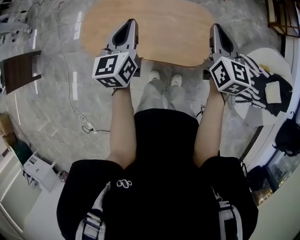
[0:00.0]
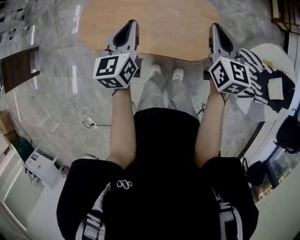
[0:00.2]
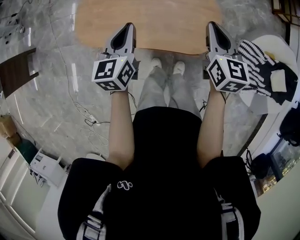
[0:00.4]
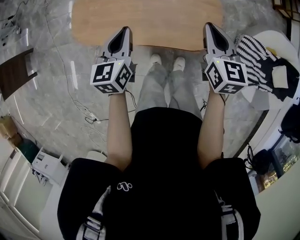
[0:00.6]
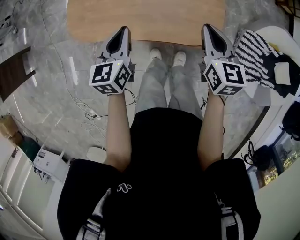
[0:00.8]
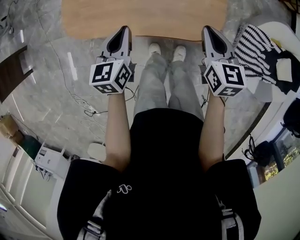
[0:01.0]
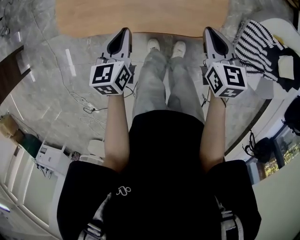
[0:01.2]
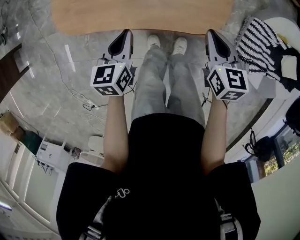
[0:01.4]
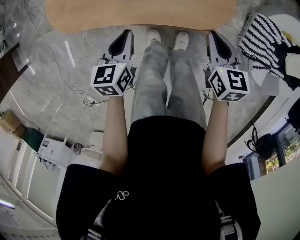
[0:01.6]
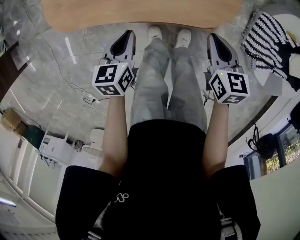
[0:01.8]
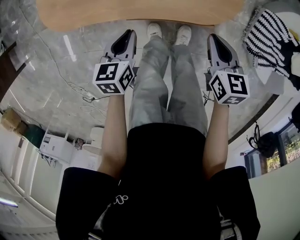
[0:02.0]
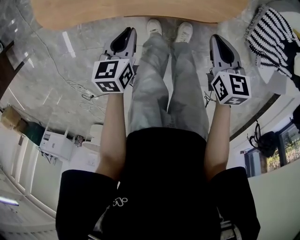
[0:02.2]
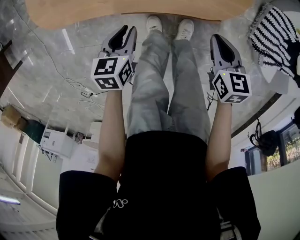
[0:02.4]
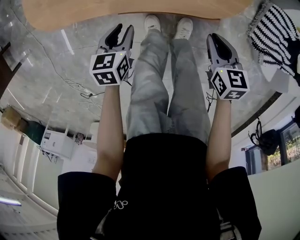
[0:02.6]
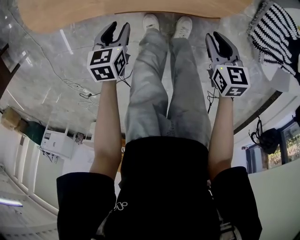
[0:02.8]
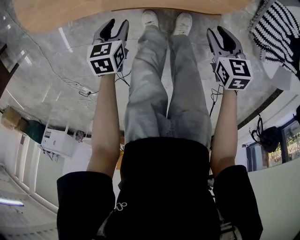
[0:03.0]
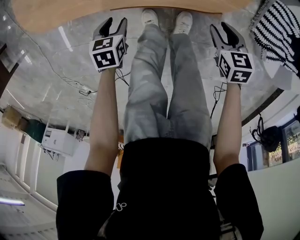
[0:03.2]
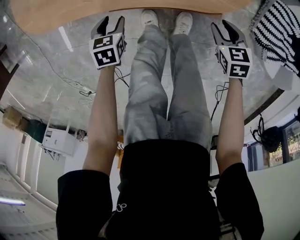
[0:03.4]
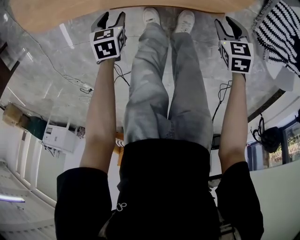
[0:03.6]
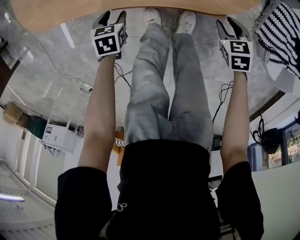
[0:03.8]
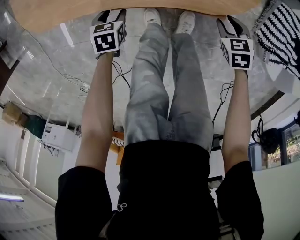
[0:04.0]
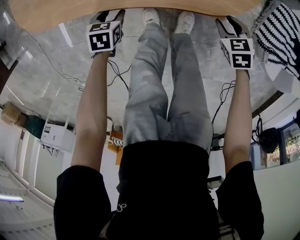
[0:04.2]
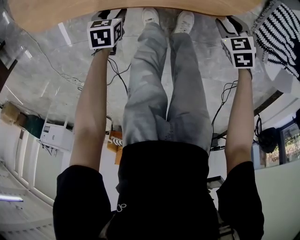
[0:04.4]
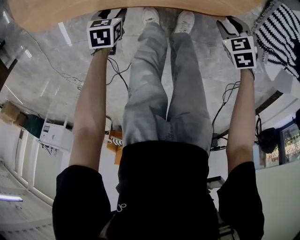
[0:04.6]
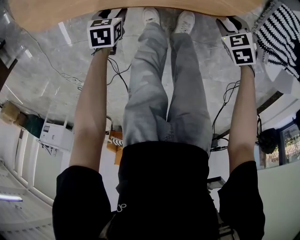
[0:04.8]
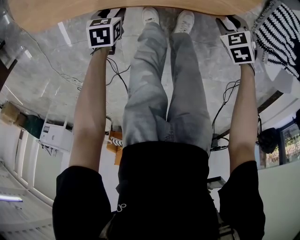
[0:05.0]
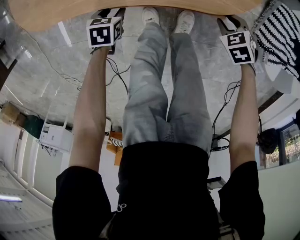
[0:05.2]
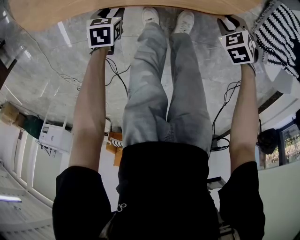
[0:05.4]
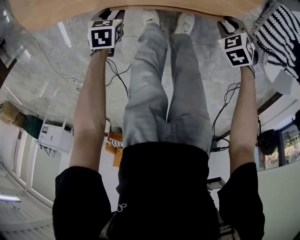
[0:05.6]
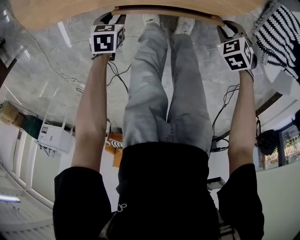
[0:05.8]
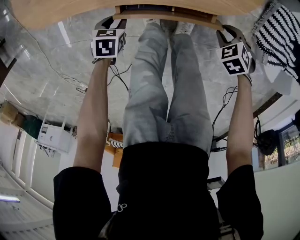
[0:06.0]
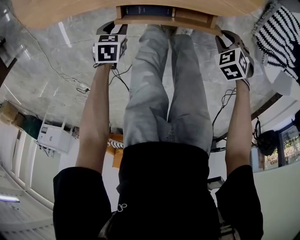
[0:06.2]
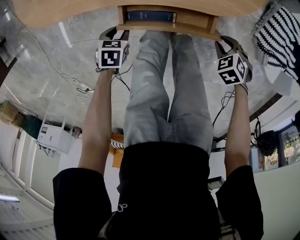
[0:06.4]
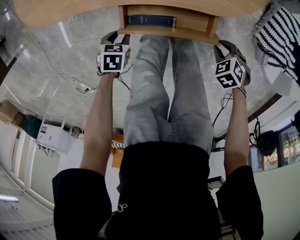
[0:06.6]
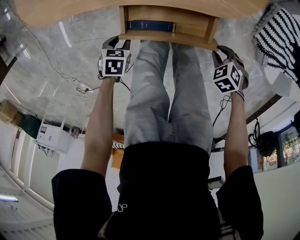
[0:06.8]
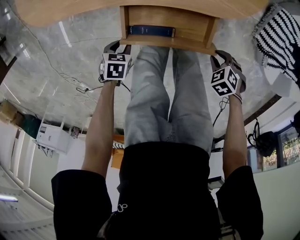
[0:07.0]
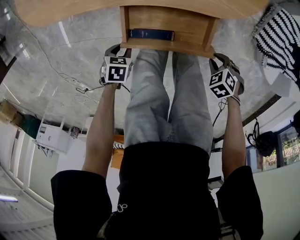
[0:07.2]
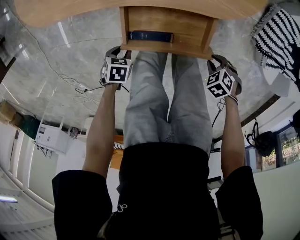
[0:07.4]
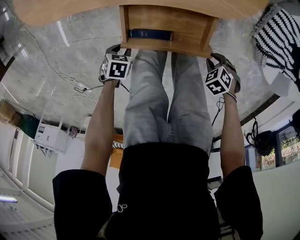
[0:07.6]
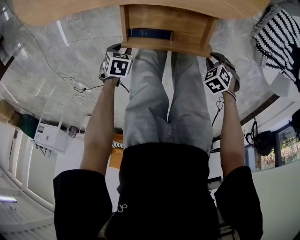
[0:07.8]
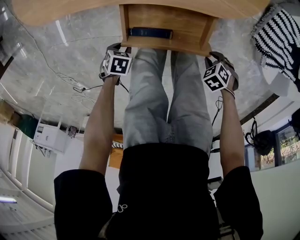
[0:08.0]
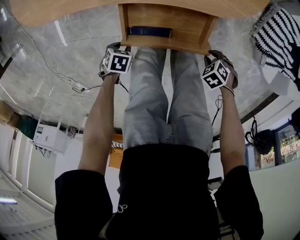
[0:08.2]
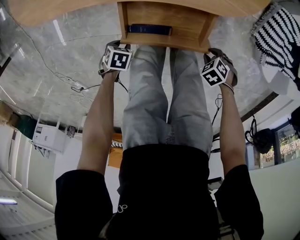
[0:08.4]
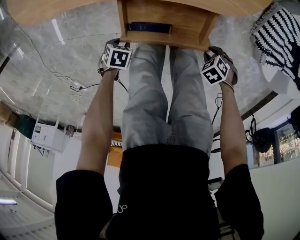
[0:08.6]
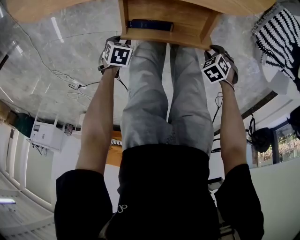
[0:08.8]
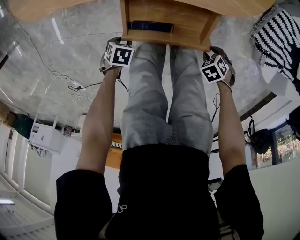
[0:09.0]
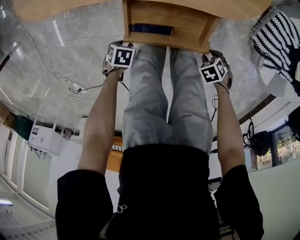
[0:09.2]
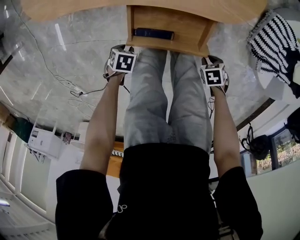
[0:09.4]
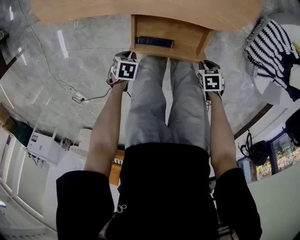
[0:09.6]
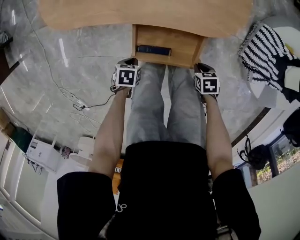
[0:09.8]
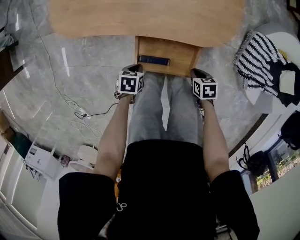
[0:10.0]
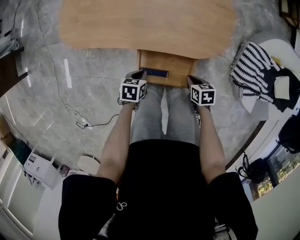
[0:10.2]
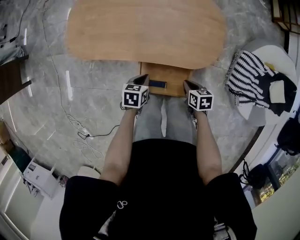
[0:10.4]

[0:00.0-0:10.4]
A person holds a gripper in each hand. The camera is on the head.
0:00.0 to 0:01.4: The right gripper moves downward and backward, about 25 cm, and changes its angle by about 20 degrees, while the left gripper is displaced downward by about 25 cm, and rotates about 30 degrees.
0:01.4 to 0:03.0: The left gripper is displaced downward by about 25 cm, changes its angle by about 20 degrees, and opens, while the right gripper heads downward and backward, covering roughly 25 cm, and opens up.
0:03.0 to 0:04.4: Both grippers travel together downward, roughly 10 cm. The right gripper turns by about 30 degrees.
0:04.4 to 0:06.0: The right gripper changes place by about 5 cm, while the left gripper shifts by some 5 cm.
0:06.0 to 0:07.4: The right gripper changes place by about 15 cm, while the left gripper shifts by approximately 15 cm.
0:07.4 to 0:09.0: Both grippers travel together downward, some 5 cm.
0:09.0 to 0:10.4: Both grippers travel together upward, some 25 cm. The left gripper changes its angle by about 40 degrees, and closes its fingers, while the right gripper turns by approximately 50 degrees, and closes its fingers.

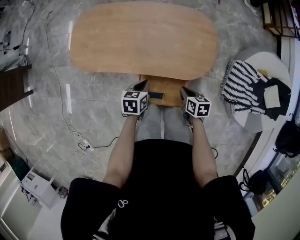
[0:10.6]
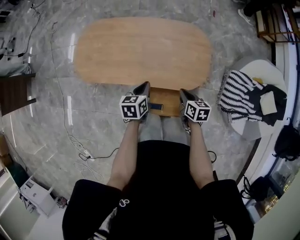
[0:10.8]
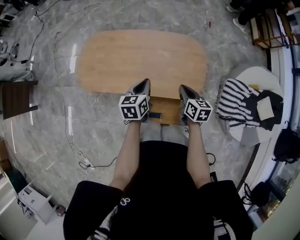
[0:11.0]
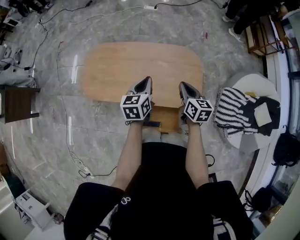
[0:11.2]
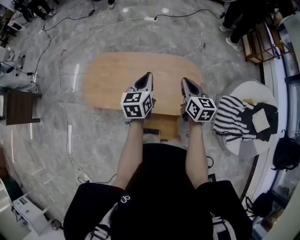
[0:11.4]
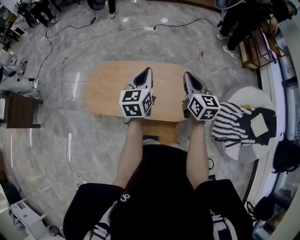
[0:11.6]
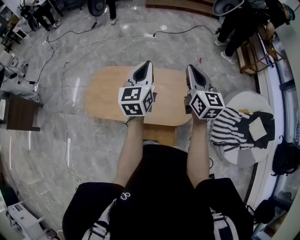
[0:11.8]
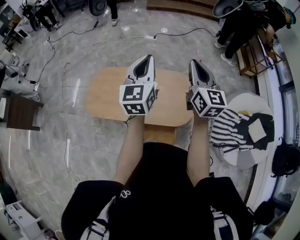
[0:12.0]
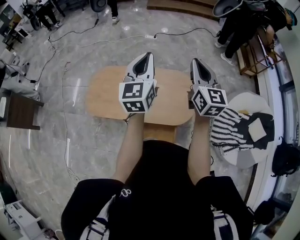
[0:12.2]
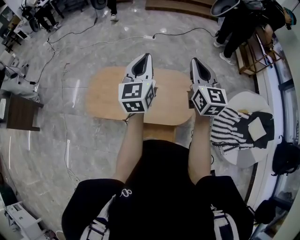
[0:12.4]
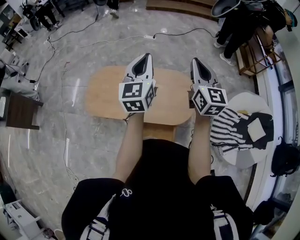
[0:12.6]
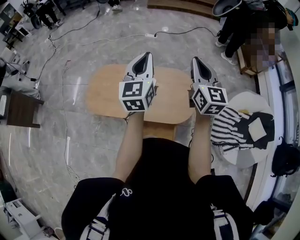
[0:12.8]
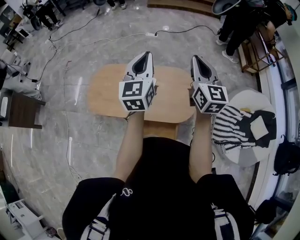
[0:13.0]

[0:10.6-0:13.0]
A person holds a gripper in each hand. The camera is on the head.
0:10.6 to 0:11.8: Both grippers travel together upward, roughly 50 cm. The right gripper angles its fingers upward, by some 50 degrees. The left gripper tilts its fingers roughly 50 degrees upward.
0:11.8 to 0:13.0: The grippers move only a little.

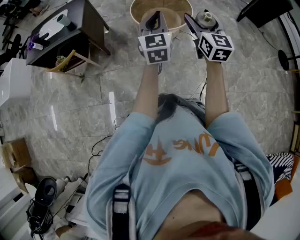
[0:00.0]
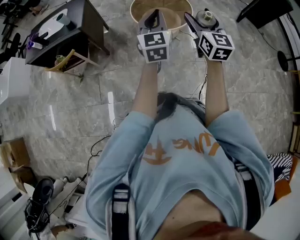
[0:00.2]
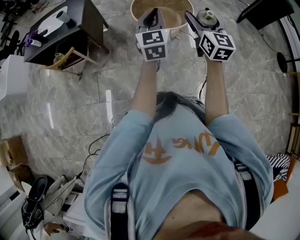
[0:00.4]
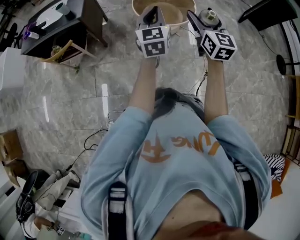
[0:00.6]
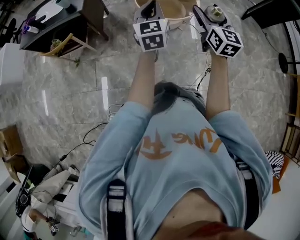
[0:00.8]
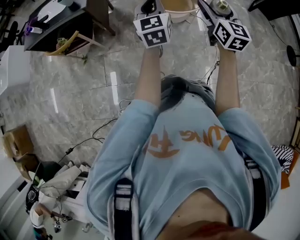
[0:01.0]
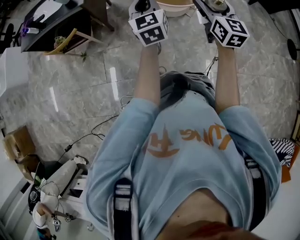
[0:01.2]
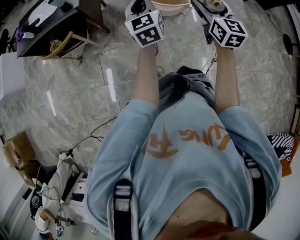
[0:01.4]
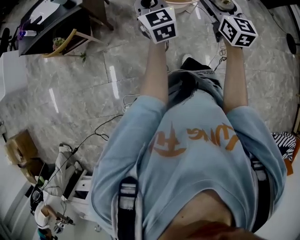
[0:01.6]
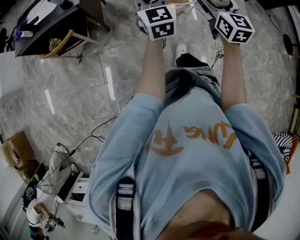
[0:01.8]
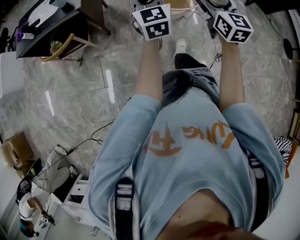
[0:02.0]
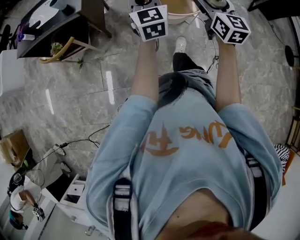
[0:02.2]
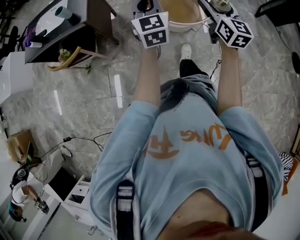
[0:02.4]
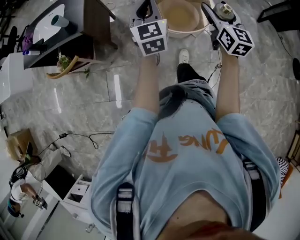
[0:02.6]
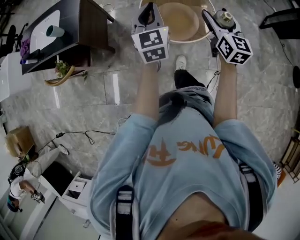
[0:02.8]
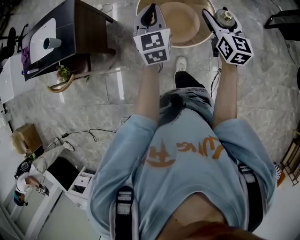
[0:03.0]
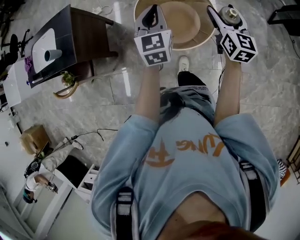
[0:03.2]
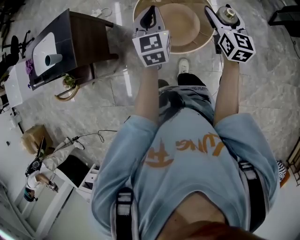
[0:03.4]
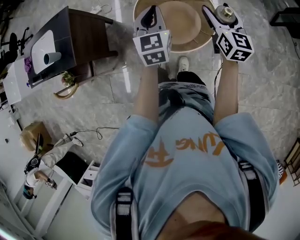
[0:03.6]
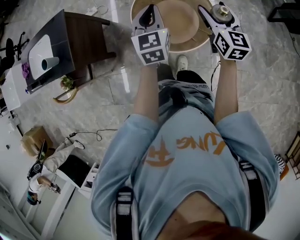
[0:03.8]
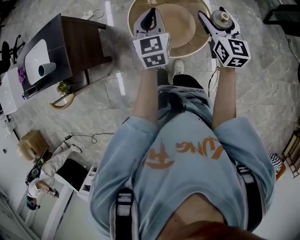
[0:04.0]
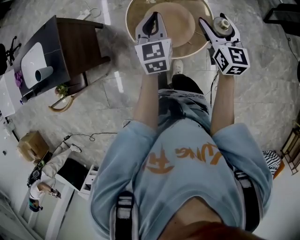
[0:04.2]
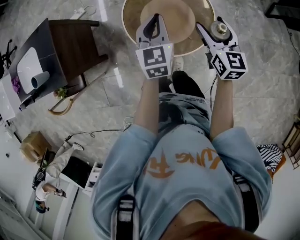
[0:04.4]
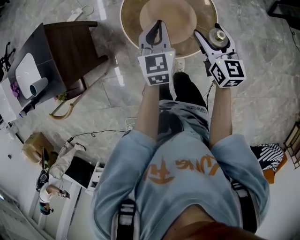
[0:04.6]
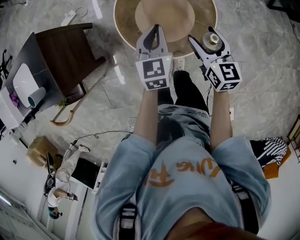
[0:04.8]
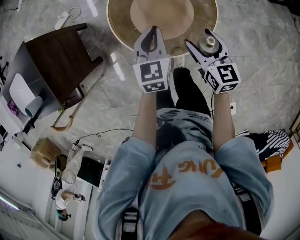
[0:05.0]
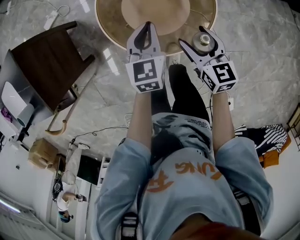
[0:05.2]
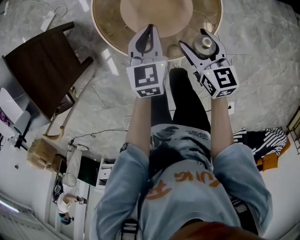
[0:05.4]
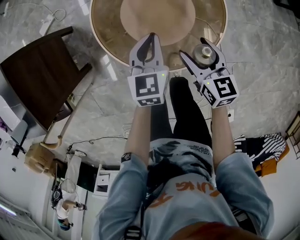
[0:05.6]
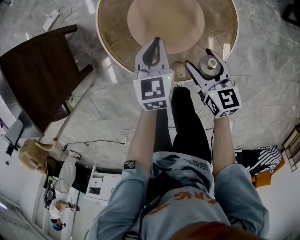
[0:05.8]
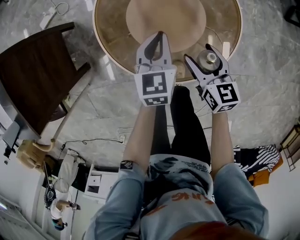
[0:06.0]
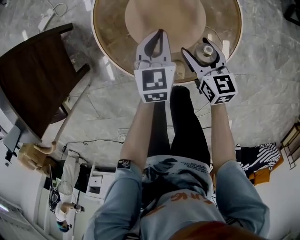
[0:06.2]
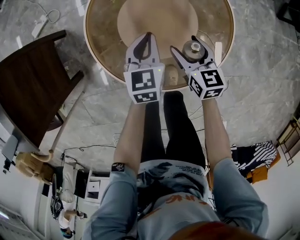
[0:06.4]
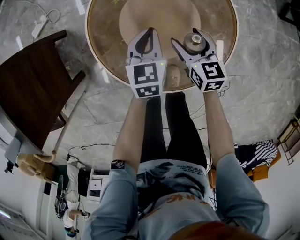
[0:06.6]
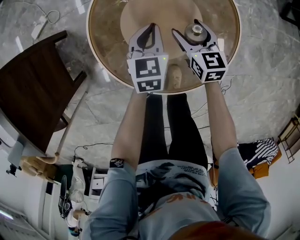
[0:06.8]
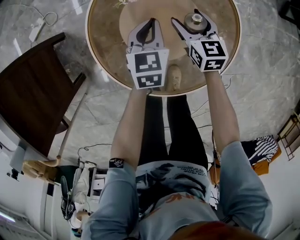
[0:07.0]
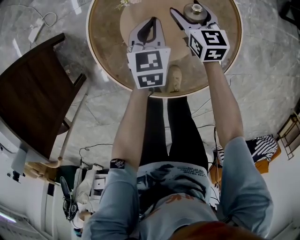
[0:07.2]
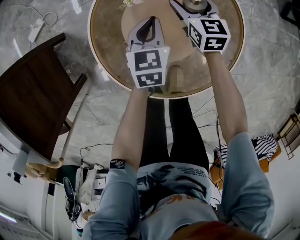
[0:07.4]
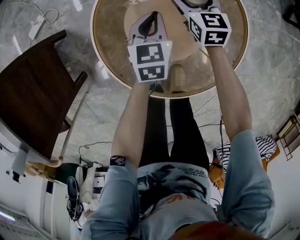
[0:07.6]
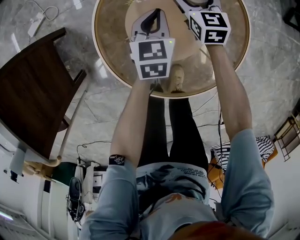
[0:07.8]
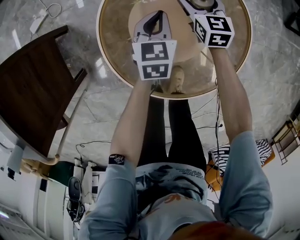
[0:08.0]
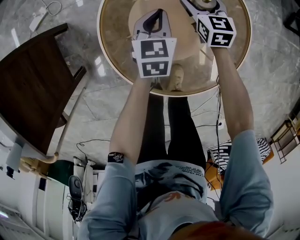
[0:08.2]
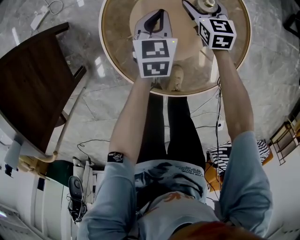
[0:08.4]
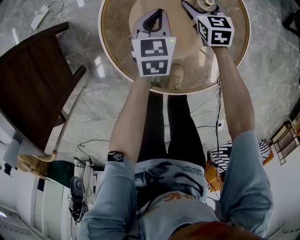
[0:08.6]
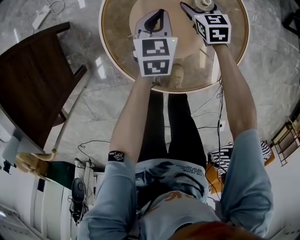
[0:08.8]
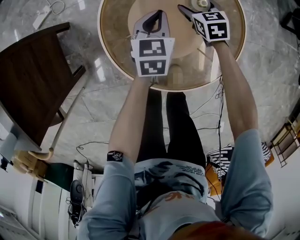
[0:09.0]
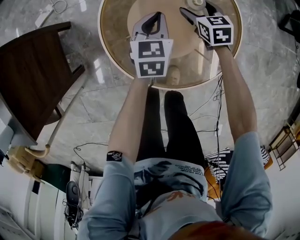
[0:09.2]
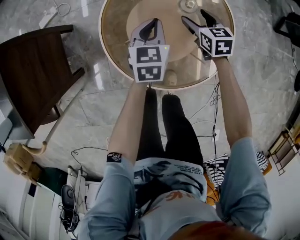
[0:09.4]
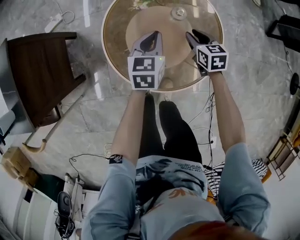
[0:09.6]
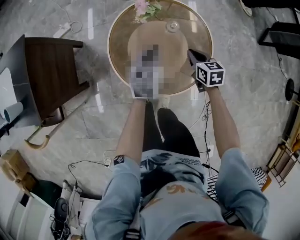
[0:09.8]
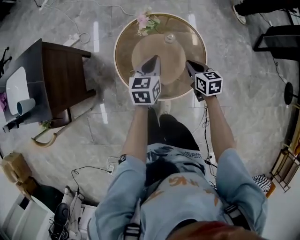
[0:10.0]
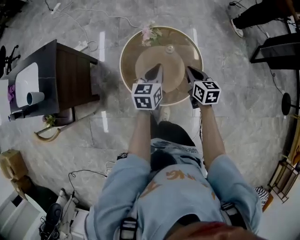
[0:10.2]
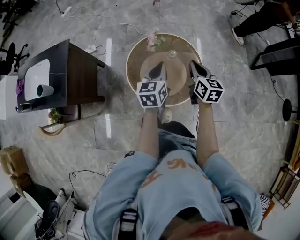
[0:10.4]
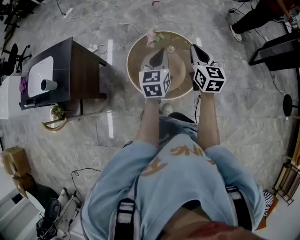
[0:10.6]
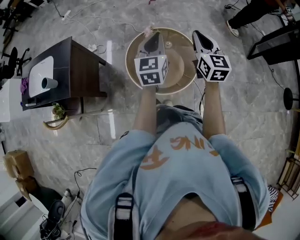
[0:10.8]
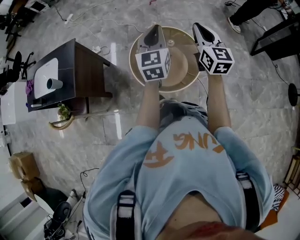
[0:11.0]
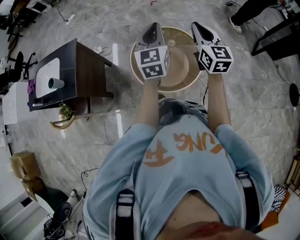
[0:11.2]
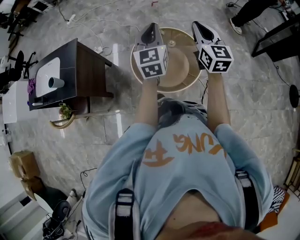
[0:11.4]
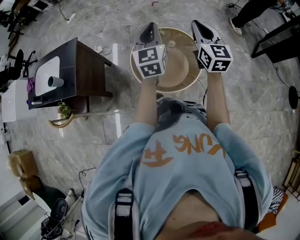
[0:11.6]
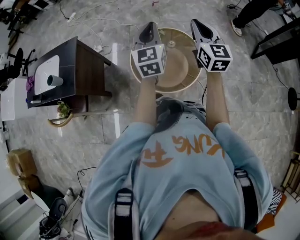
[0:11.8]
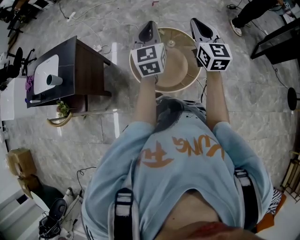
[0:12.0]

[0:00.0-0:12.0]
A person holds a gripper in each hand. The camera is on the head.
0:00.0 to 0:01.6: The right gripper is displaced to the left, downward and forward by approximately 15 cm. The left gripper is displaced to the left, forward and downward by some 20 cm.
0:01.6 to 0:03.0: The grippers both shift forward and to the right by approximately 40 cm.
0:03.0 to 0:04.4: The left gripper heads forward, to the right and downward, covering approximately 20 cm. The right gripper moves forward, downward and to the right, approximately 15 cm.
0:04.4 to 0:06.0: The two grippers go roughly 40 cm downward. The right gripper swivels some 20 degrees.
0:06.0 to 0:07.6: The left gripper goes about 15 cm forward and downward, while the right gripper travels forward by approximately 25 cm.
0:07.6 to 0:09.0: The right gripper travels backward by some 5 cm.
0:09.0 to 0:10.4: The grippers both shift upward and backward by about 50 cm. The right gripper rotates roughly 30 degrees, and closes its fingers.
0:10.4 to 0:12.0: The grippers both shift upward by about 20 cm. The right gripper turns by about 30 degrees, while the left gripper turns by some 30 degrees.
